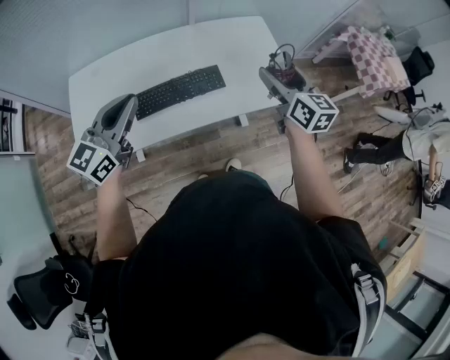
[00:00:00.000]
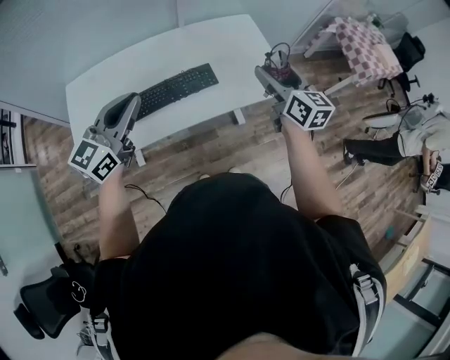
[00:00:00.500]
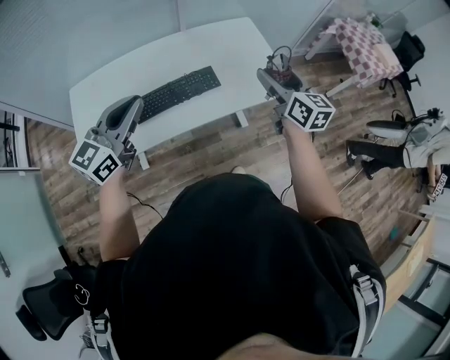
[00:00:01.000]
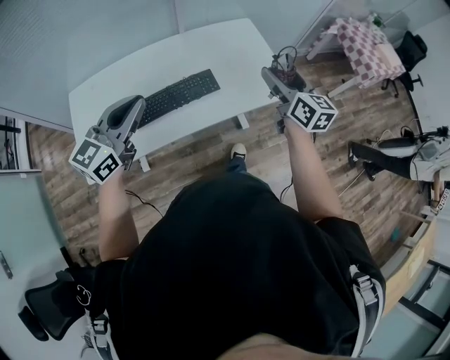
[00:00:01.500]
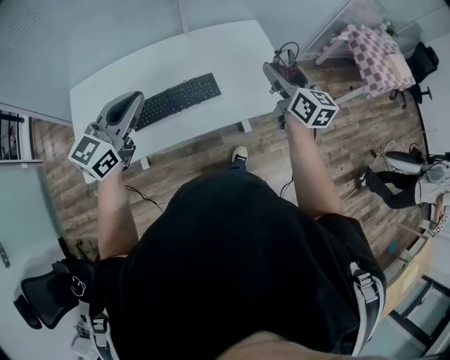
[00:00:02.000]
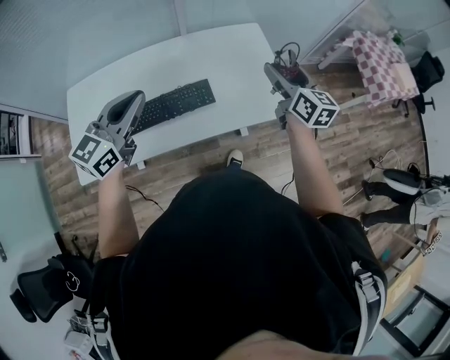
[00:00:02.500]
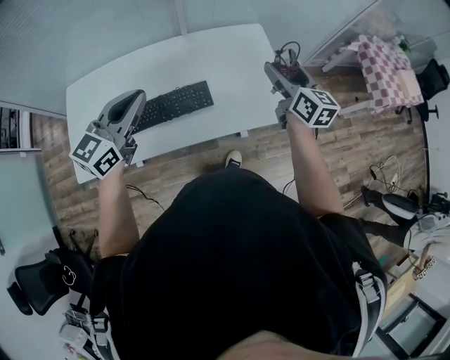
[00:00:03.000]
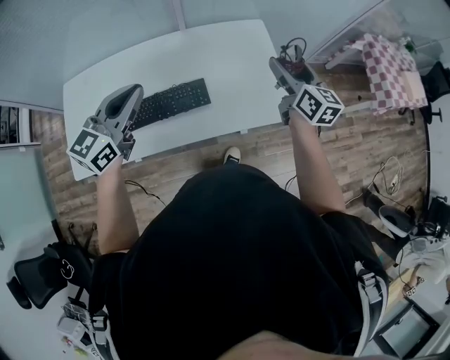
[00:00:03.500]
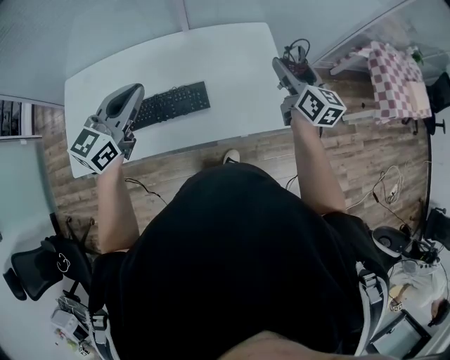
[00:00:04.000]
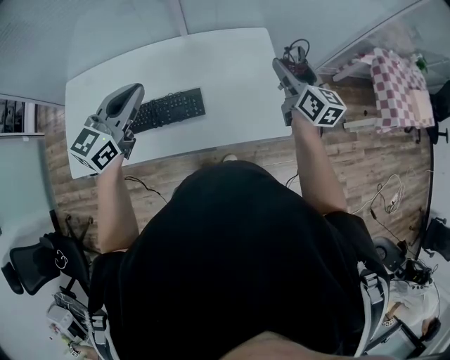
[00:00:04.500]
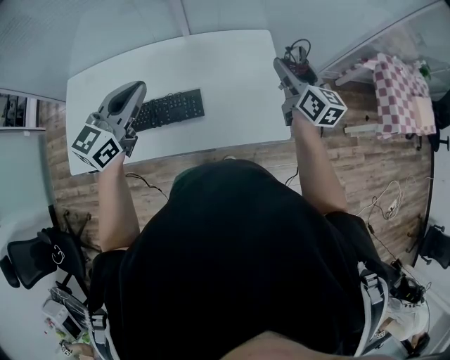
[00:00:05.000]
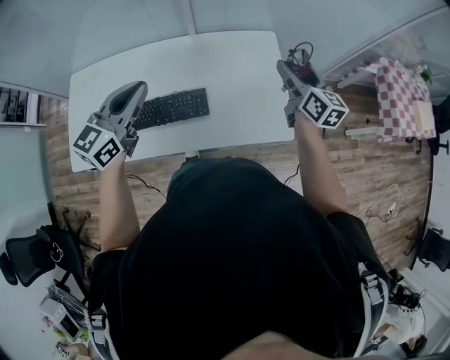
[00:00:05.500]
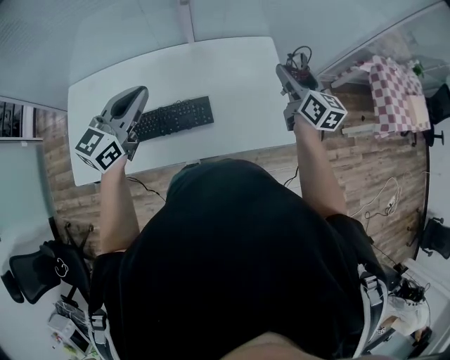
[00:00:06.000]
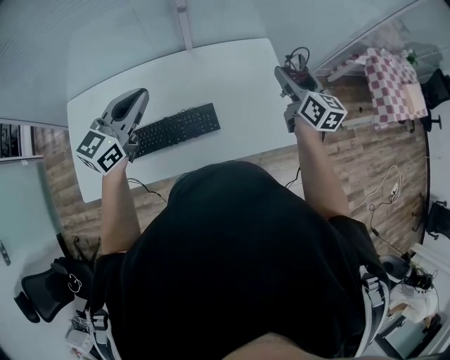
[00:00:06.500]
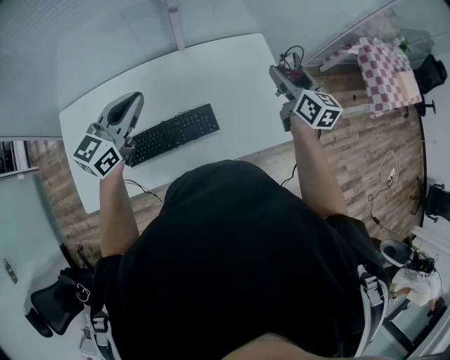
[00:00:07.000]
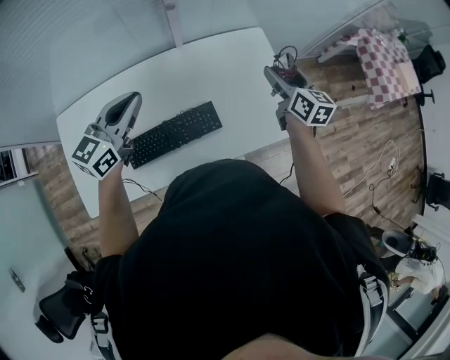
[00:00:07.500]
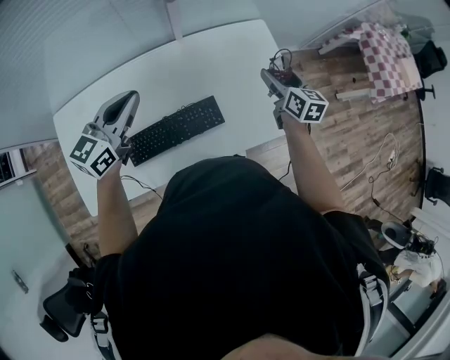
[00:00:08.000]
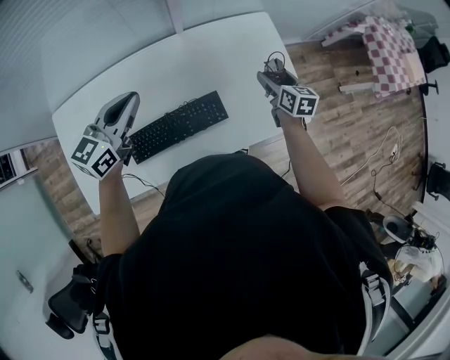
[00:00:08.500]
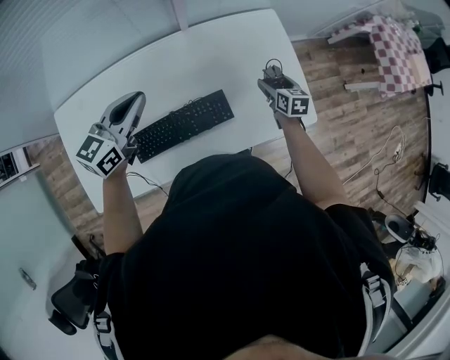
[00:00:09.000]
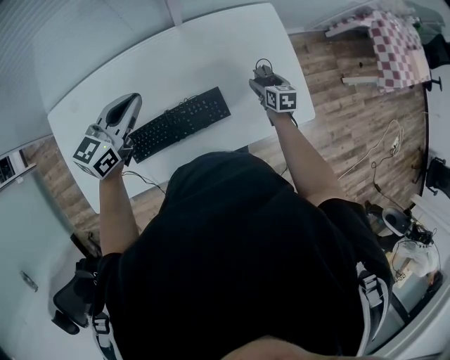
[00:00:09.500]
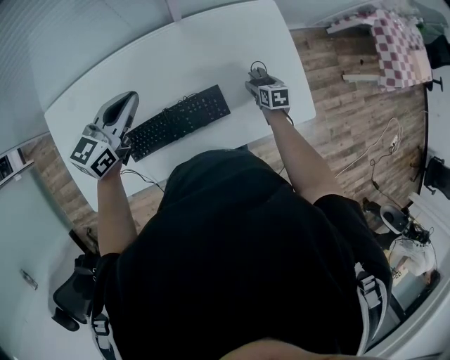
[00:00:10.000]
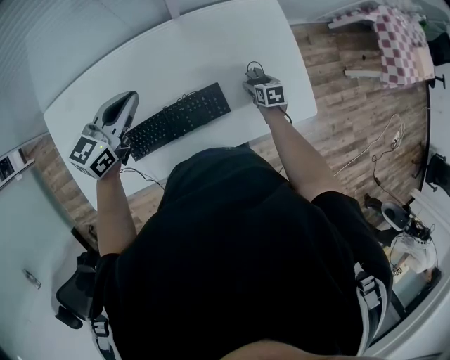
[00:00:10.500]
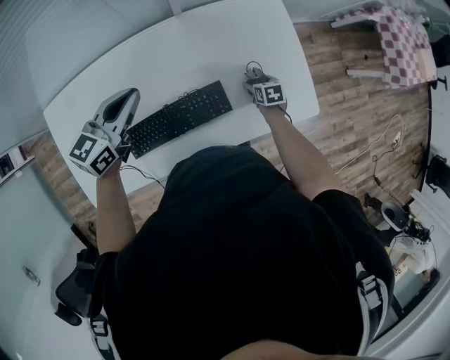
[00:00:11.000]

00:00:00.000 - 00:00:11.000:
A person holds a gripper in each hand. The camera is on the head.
00:00:00.000 - 00:00:02.000: The two grippers go about 5 cm to the right.
00:00:02.000 - 00:00:03.500: Both grippers travel together forward and to the right, approximately 15 cm.
00:00:03.500 - 00:00:05.500: The right gripper moves forward, approximately 10 cm; the left gripper is displaced forward by approximately 5 cm.
00:00:05.500 - 00:00:07.500: The right gripper is displaced to the left by some 10 cm, while the left gripper heads to the left and forward, covering about 15 cm.
00:00:07.500 - 00:00:09.000: The left gripper shifts approximately 5 cm downward, while the right gripper heads downward, covering some 20 cm, and turns by roughly 20 degrees.
00:00:09.000 - 00:00:11.000: The left gripper moves some 5 cm, while the right gripper is displaced downward by roughly 15 cm, and turns by approximately 20 degrees.

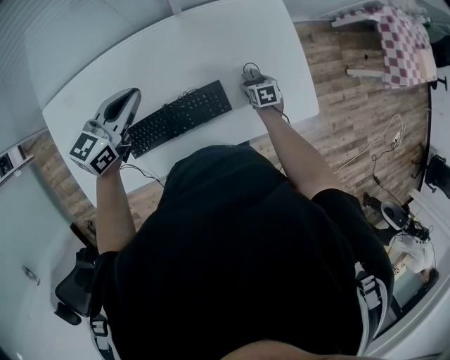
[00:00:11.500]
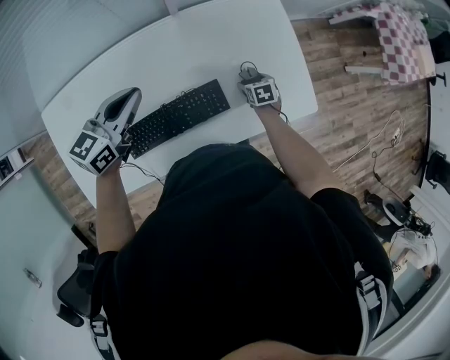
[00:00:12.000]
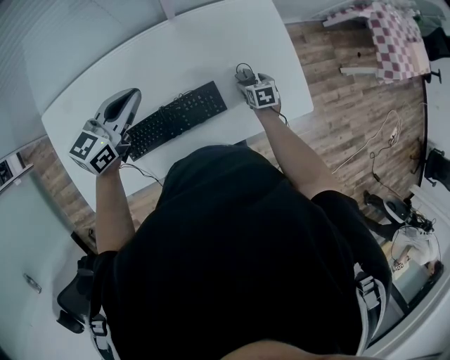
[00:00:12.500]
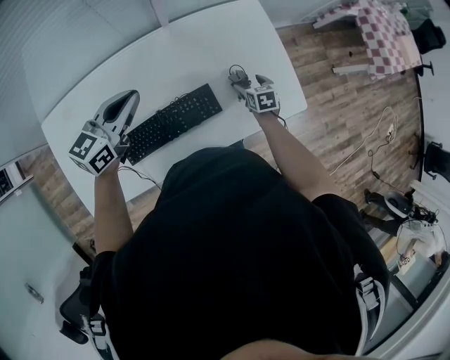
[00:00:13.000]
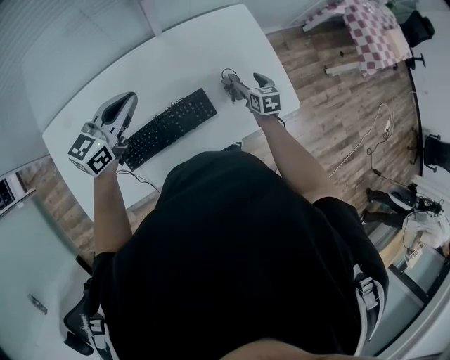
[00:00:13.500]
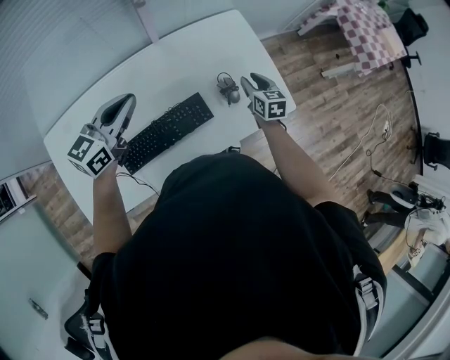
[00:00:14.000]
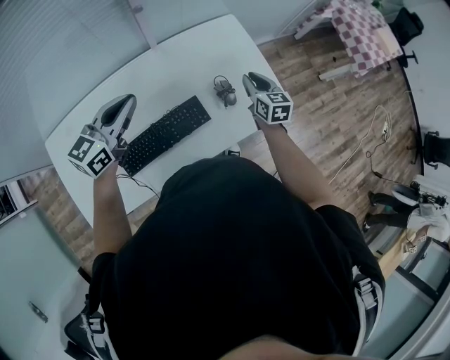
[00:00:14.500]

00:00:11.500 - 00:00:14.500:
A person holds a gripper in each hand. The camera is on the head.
00:00:11.500 - 00:00:13.000: The right gripper moves upward, approximately 5 cm.
00:00:13.000 - 00:00:14.500: The left gripper moves upward, approximately 5 cm, while the right gripper is displaced upward by about 20 cm, rotates approximately 30 degrees, and closes up.

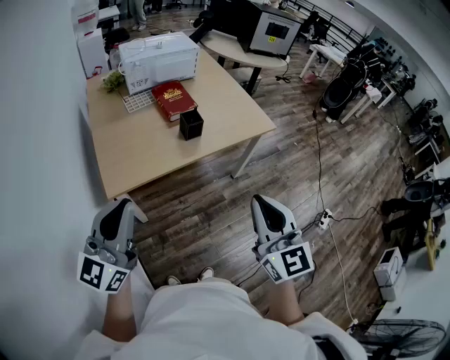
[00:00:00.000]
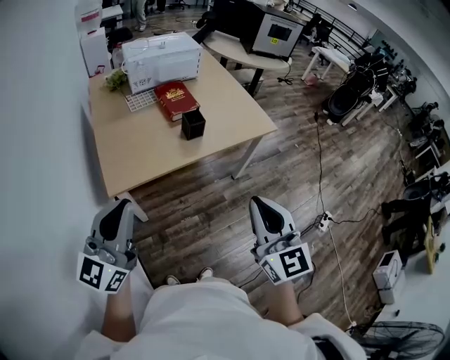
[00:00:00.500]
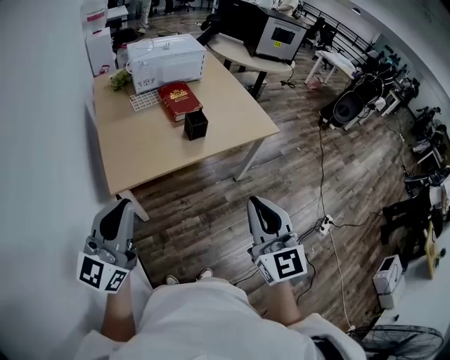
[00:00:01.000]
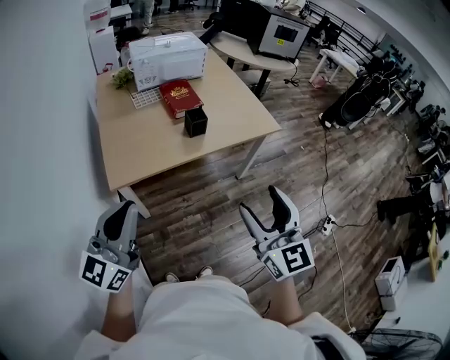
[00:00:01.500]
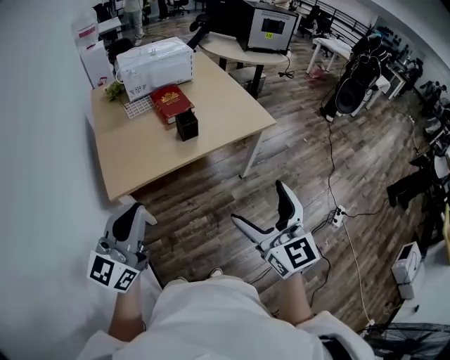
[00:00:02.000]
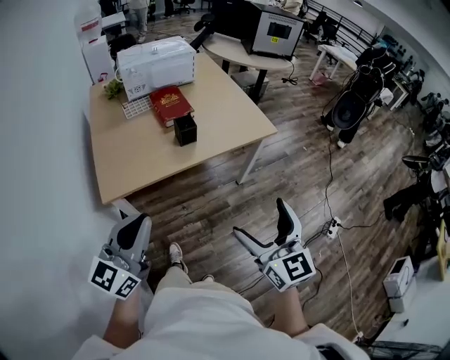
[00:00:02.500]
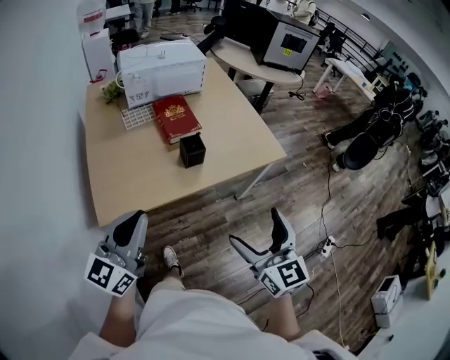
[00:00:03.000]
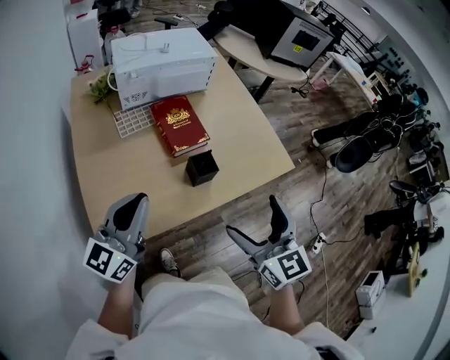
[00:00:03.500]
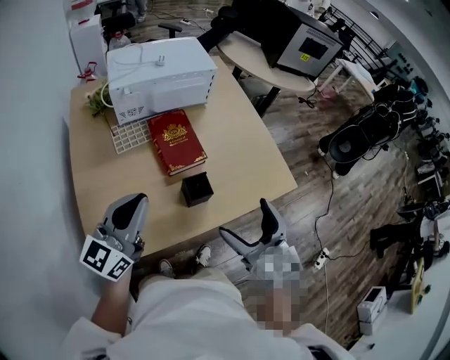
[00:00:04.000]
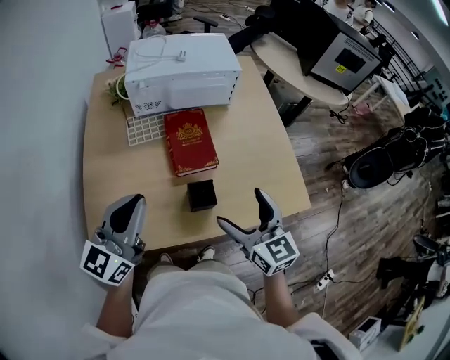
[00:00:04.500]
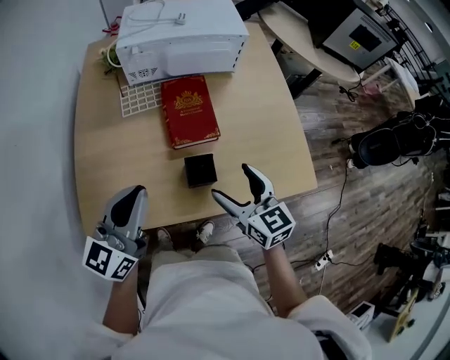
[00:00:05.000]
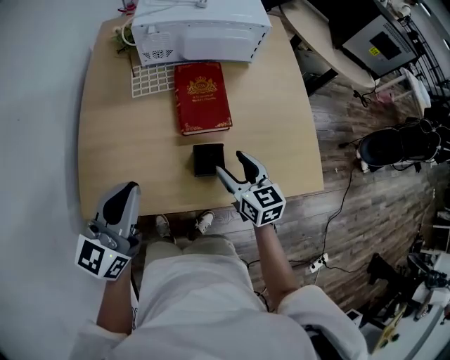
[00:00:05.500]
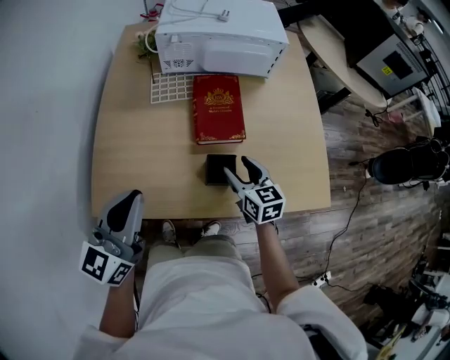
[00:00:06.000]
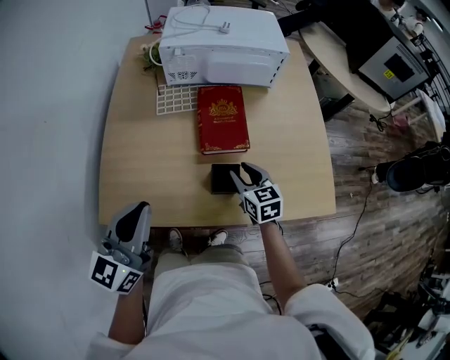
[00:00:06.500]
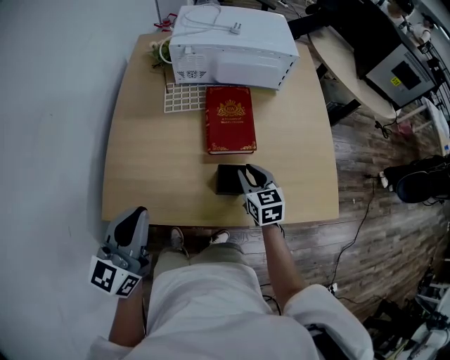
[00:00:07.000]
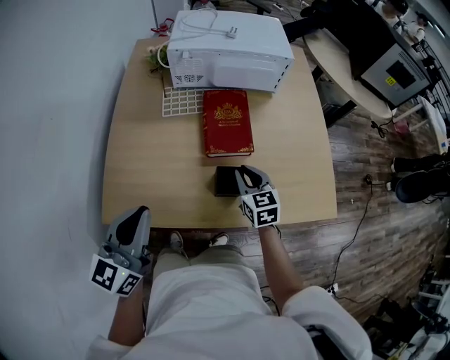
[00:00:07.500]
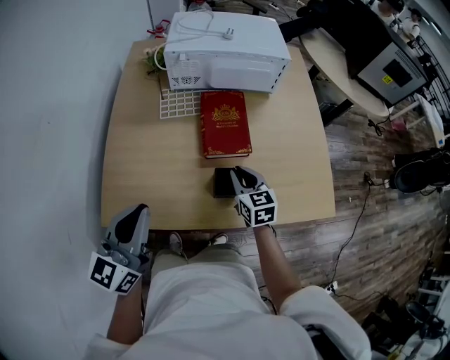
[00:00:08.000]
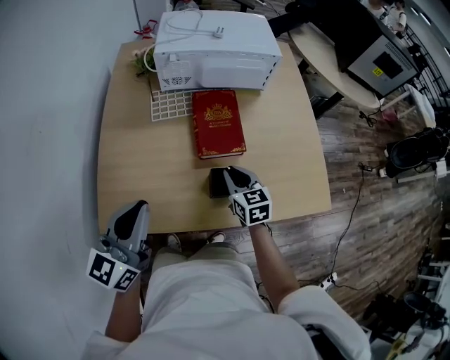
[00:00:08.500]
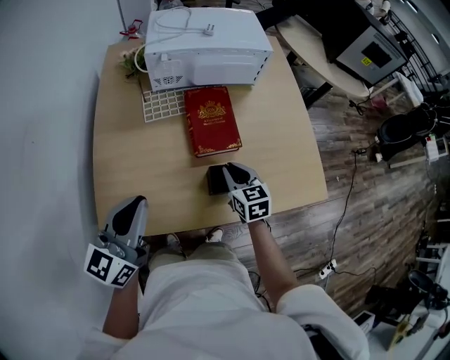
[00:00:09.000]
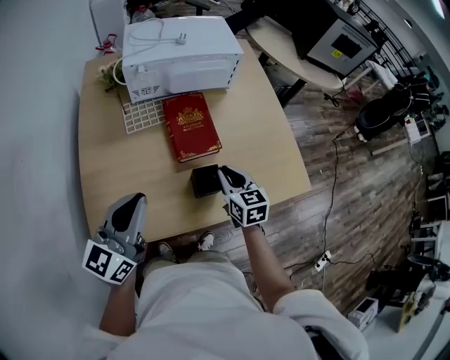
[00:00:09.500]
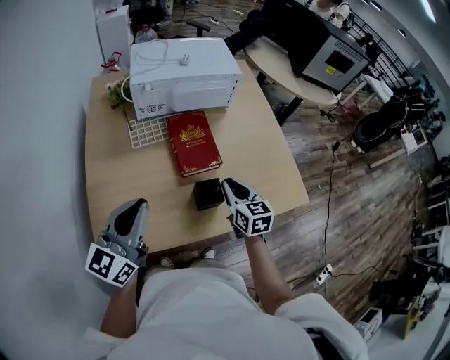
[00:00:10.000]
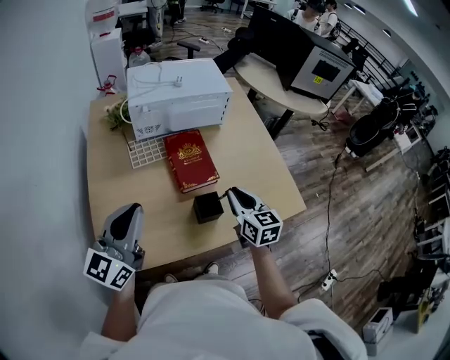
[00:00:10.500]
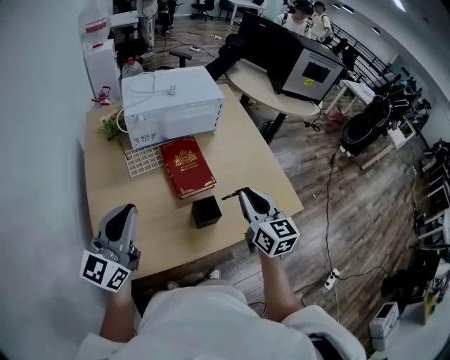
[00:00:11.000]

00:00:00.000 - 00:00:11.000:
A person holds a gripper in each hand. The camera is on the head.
00:00:00.000 - 00:00:02.000: The two grippers go approximately 5 cm to the right. The right gripper opens its fingers.
00:00:02.000 - 00:00:03.500: The right gripper heads forward and to the left, covering about 35 cm; the left gripper travels forward by some 35 cm.
00:00:03.500 - 00:00:05.500: The right gripper heads forward and downward, covering approximately 30 cm, rotates about 30 degrees, and closes up. The left gripper heads to the right and forward, covering some 10 cm, and swivels about 20 degrees.
00:00:05.500 - 00:00:07.500: The right gripper moves roughly 5 cm, and closes. Meanwhile the left gripper shifts by roughly 5 cm.
00:00:07.500 - 00:00:09.000: The left gripper heads forward, covering some 5 cm.
00:00:09.000 - 00:00:11.000: The right gripper shifts approximately 20 cm upward and to the right, and rotates about 30 degrees, while the left gripper moves upward, roughly 5 cm.

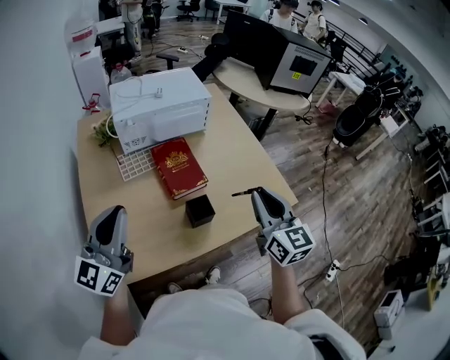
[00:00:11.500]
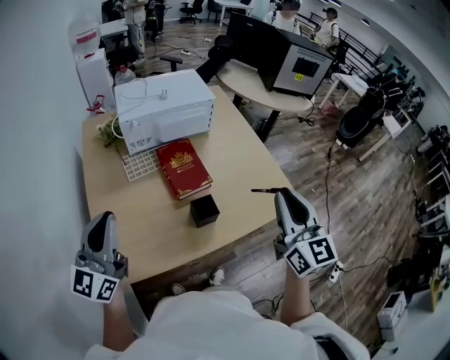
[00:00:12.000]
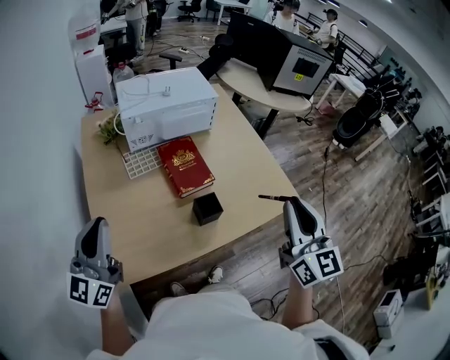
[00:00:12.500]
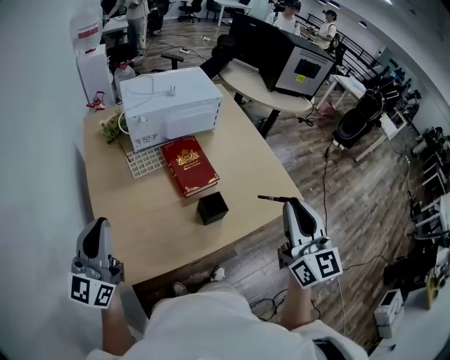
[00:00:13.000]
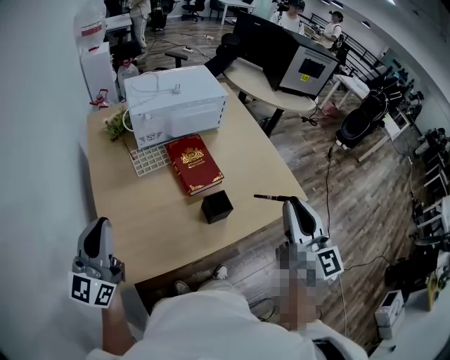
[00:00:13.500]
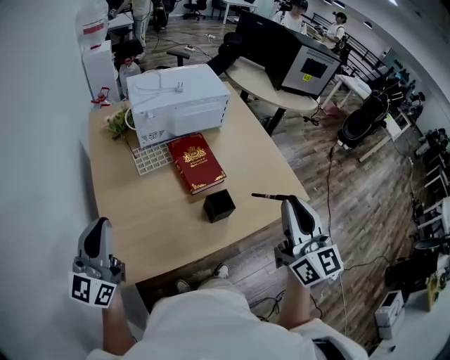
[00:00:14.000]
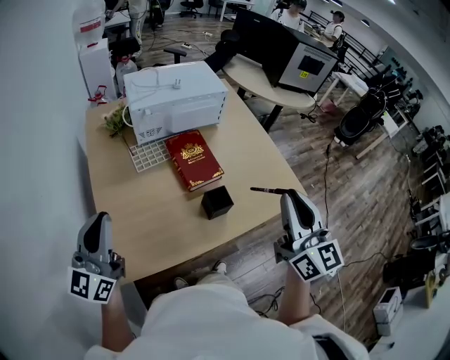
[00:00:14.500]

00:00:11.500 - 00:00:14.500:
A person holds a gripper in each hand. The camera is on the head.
00:00:11.500 - 00:00:13.000: The left gripper moves to the left, about 10 cm, while the right gripper heads backward and upward, covering roughly 10 cm.
00:00:13.000 - 00:00:14.500: The grippers make only small movements.
